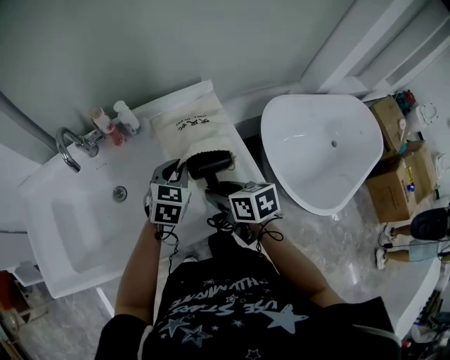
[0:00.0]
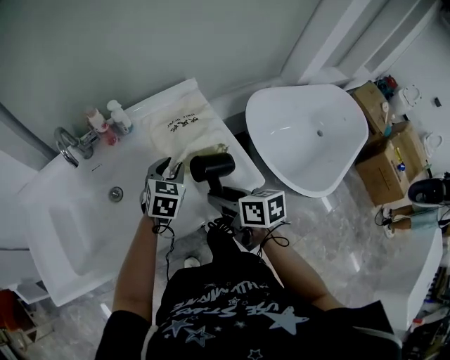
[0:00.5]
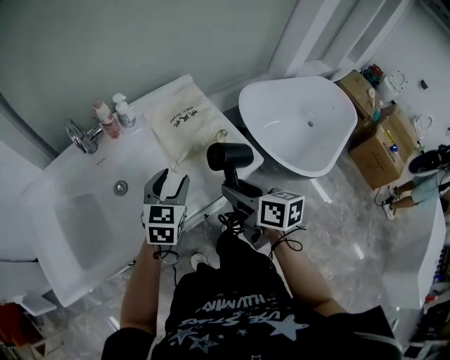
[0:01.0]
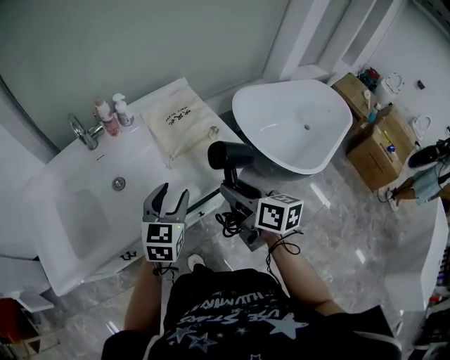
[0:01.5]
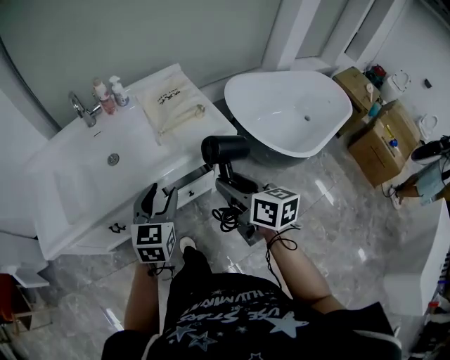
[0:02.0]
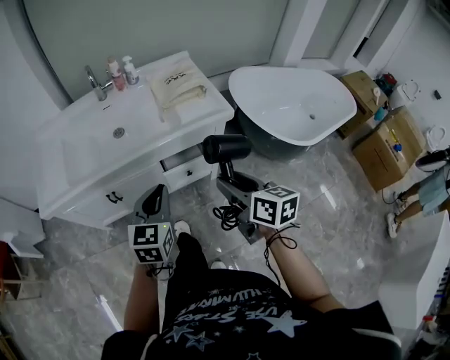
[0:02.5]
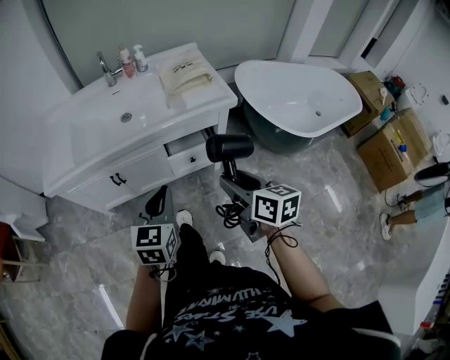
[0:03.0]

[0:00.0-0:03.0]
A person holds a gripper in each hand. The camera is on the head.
0:00.0 to 0:01.5: The right gripper shifts approximately 20 cm backward and upward, and swivels some 30 degrees. Meanwhile the left gripper heads backward, covering about 25 cm, and opens its fingers.
0:01.5 to 0:03.0: Both grippers travel together backward, about 30 cm. The left gripper closes.

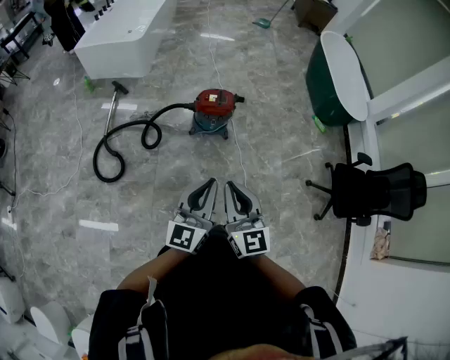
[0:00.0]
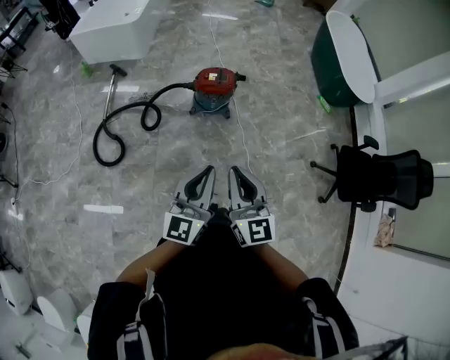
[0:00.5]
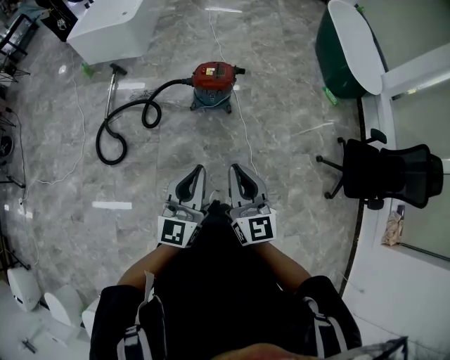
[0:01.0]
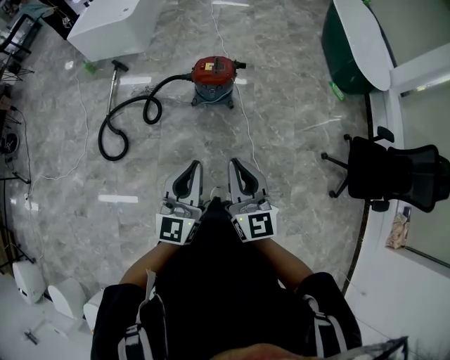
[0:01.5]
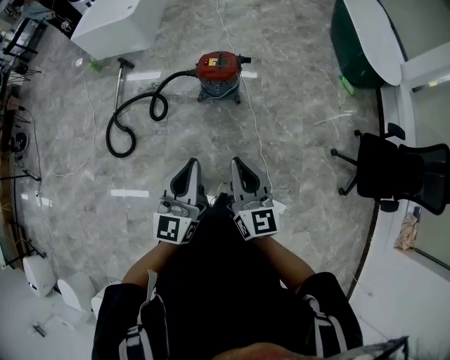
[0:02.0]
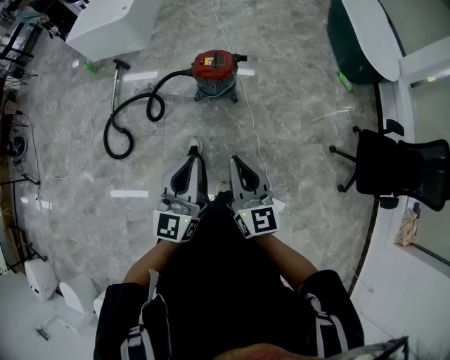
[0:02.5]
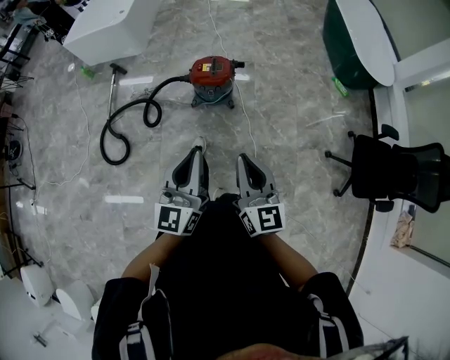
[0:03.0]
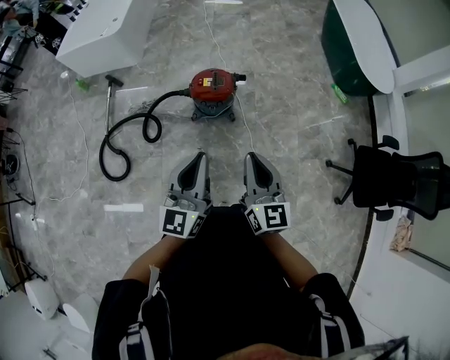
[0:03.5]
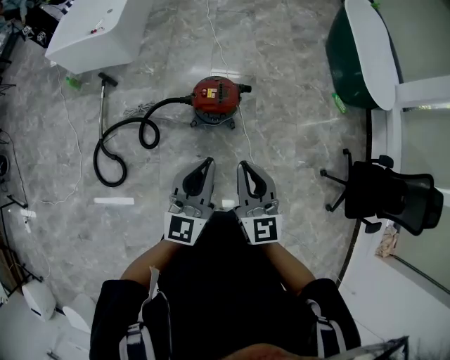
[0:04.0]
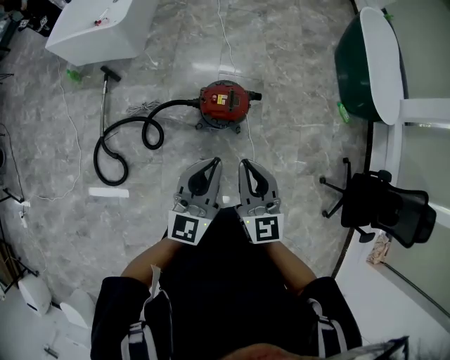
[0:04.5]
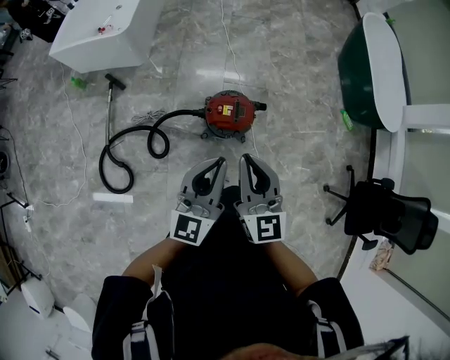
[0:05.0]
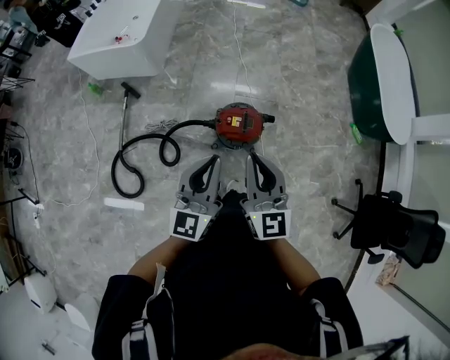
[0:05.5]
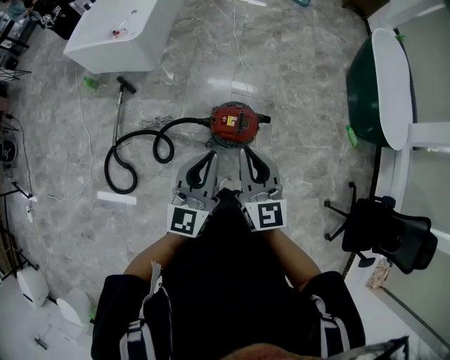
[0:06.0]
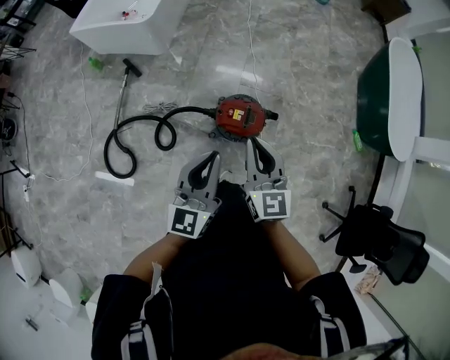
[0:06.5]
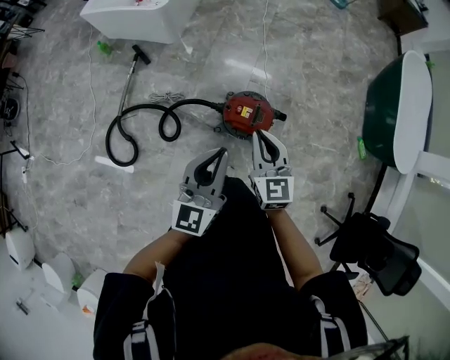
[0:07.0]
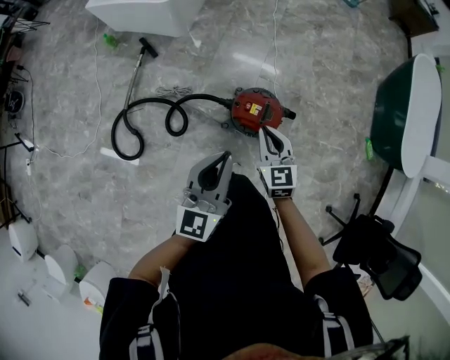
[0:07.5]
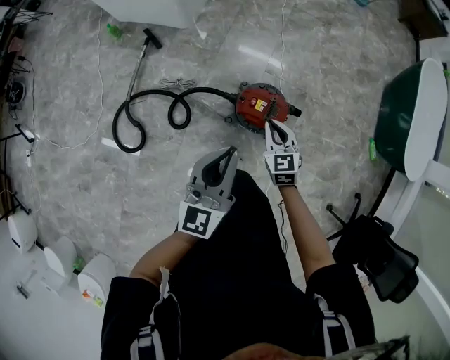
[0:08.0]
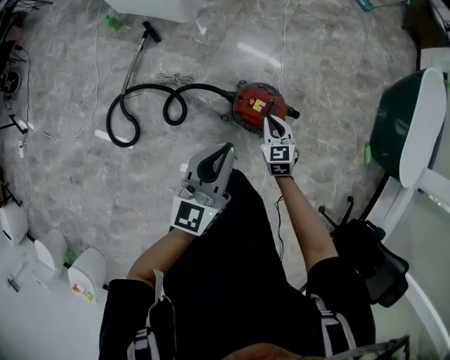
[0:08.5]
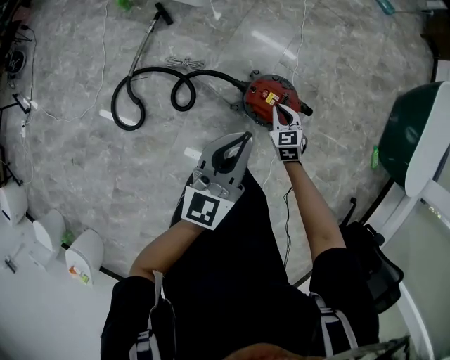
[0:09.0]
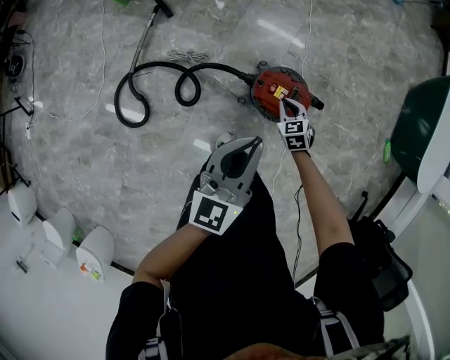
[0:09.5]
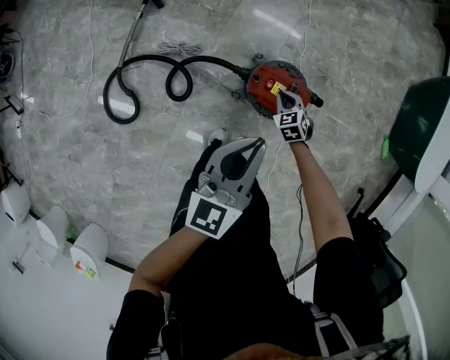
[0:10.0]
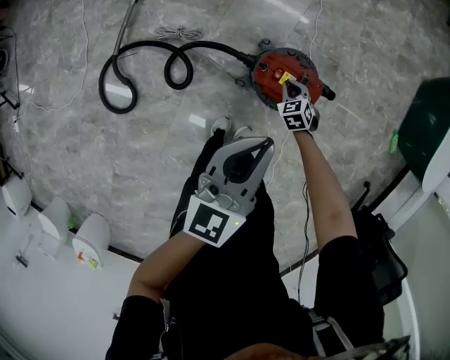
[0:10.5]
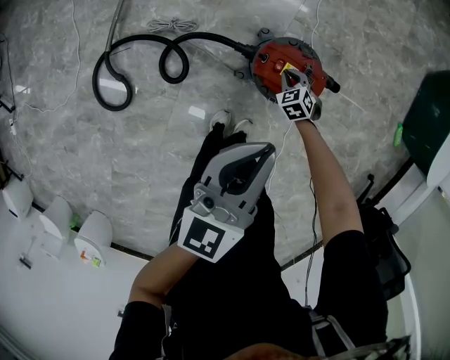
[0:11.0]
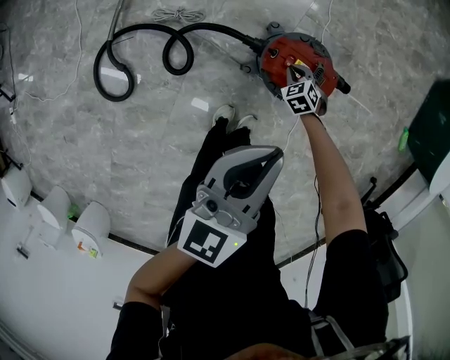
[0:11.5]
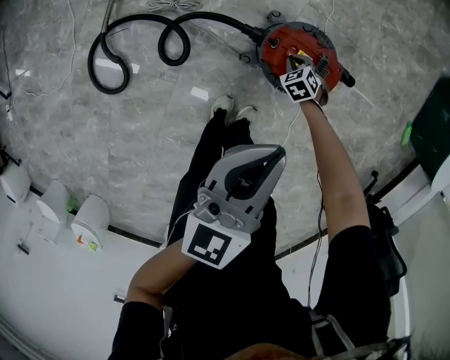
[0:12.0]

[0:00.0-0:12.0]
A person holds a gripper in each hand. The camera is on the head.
0:00.0 to 0:02.0: The left gripper heads to the right, covering about 10 cm, while the right gripper is displaced to the right by approximately 15 cm.
0:02.0 to 0:04.0: Both grippers travel together forward, roughly 25 cm.
0:04.0 to 0:06.0: The right gripper is displaced forward by some 20 cm; the left gripper goes approximately 15 cm forward and to the left.
0:06.0 to 0:08.0: The right gripper heads downward and forward, covering about 25 cm, and swivels roughly 30 degrees, while the left gripper shifts by about 5 cm.
0:08.0 to 0:10.0: The right gripper is displaced downward by some 25 cm, and turns by about 20 degrees. Meanwhile the left gripper shifts some 15 cm downward and forward.
0:10.0 to 0:12.0: The left gripper moves downward, some 10 cm, while the right gripper is displaced downward by some 20 cm.

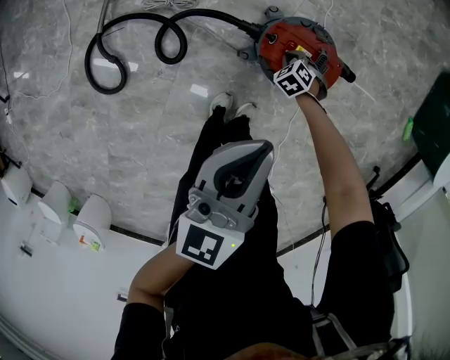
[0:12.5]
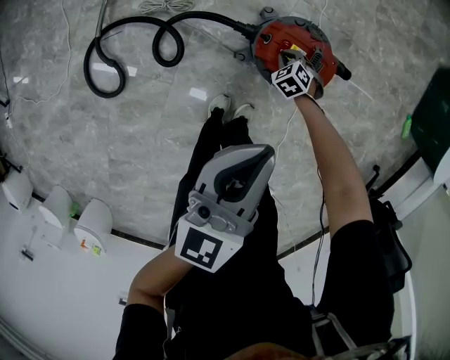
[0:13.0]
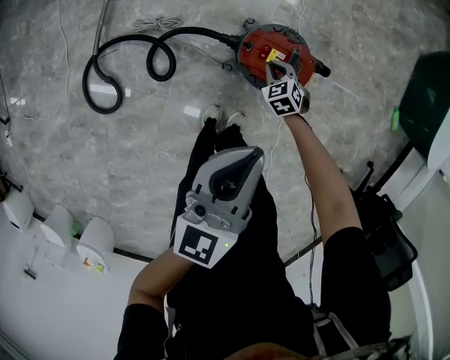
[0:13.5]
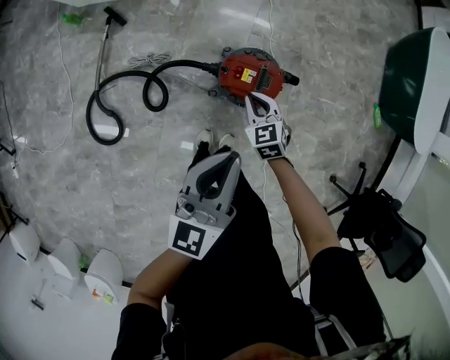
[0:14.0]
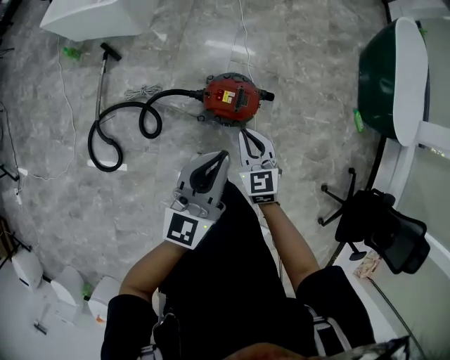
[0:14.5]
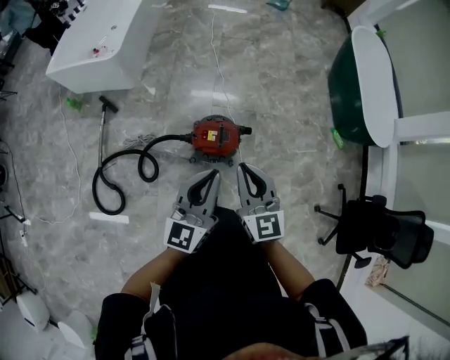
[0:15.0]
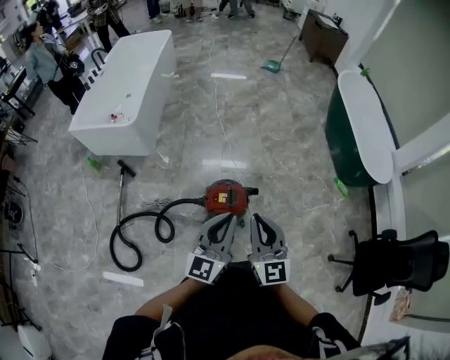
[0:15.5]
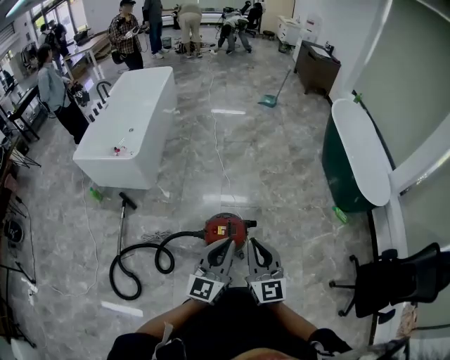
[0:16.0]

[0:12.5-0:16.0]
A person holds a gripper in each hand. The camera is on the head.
0:12.5 to 0:14.5: The left gripper is displaced upward by some 20 cm. Meanwhile the right gripper travels upward by some 50 cm, and tips its fingers upward by some 50 degrees.
0:14.5 to 0:16.0: The right gripper is displaced upward by about 25 cm, and turns by some 30 degrees. Meanwhile the left gripper goes roughly 10 cm upward and to the right.

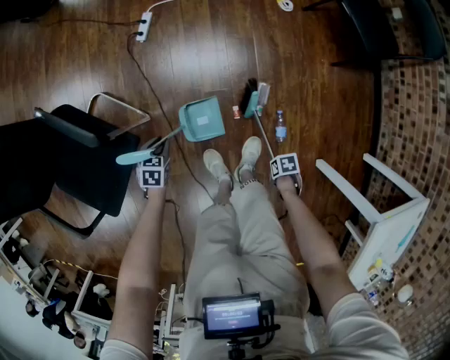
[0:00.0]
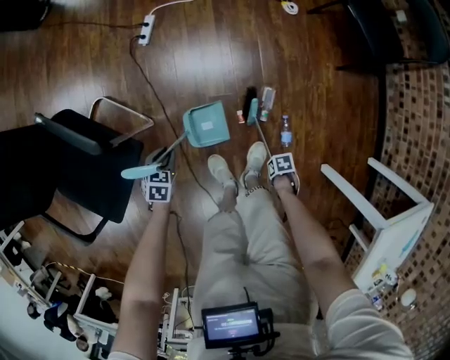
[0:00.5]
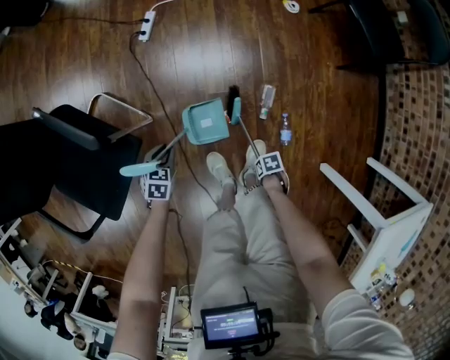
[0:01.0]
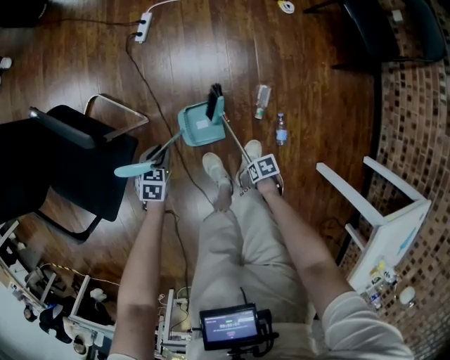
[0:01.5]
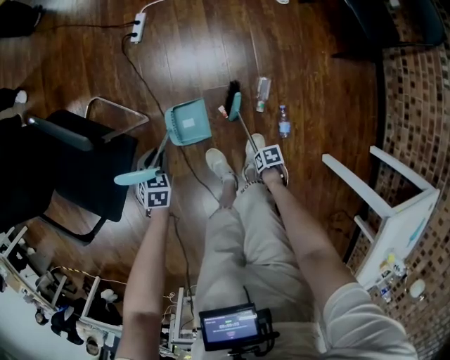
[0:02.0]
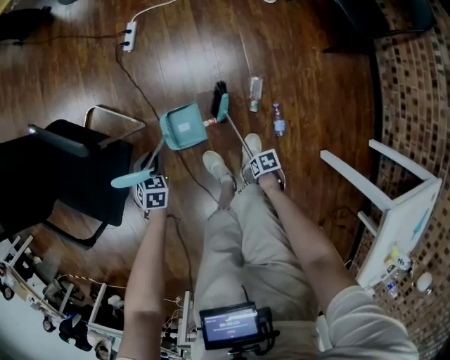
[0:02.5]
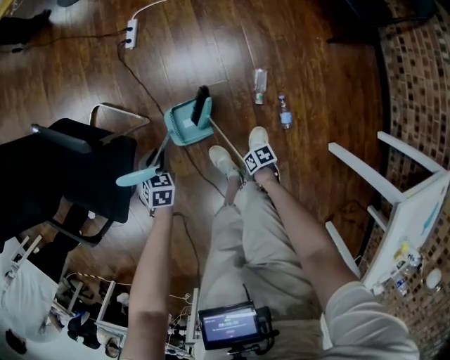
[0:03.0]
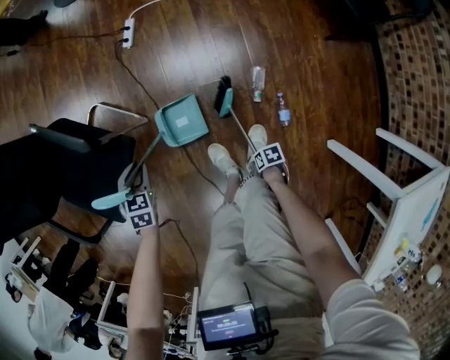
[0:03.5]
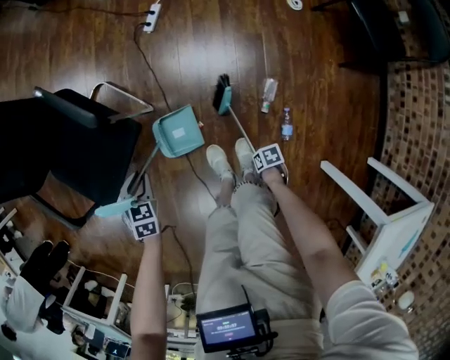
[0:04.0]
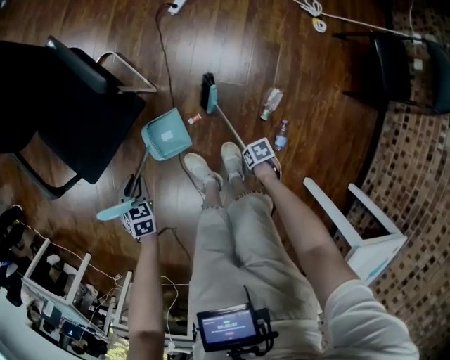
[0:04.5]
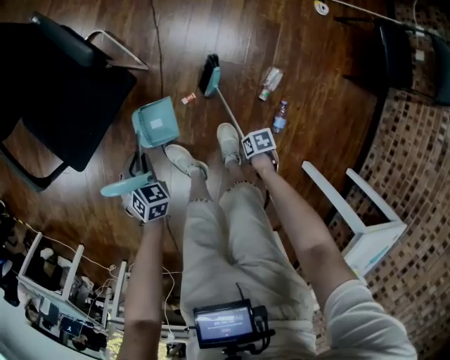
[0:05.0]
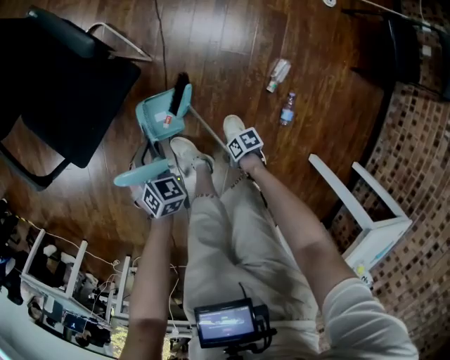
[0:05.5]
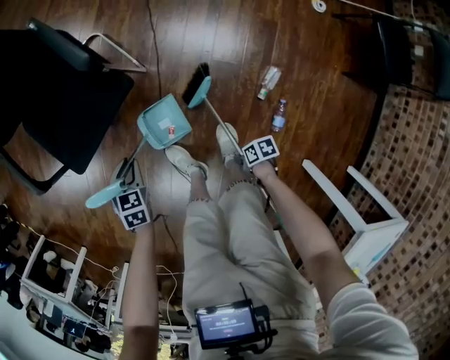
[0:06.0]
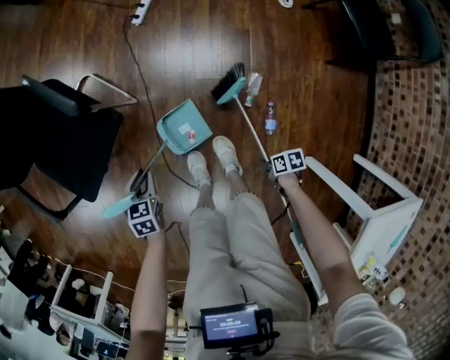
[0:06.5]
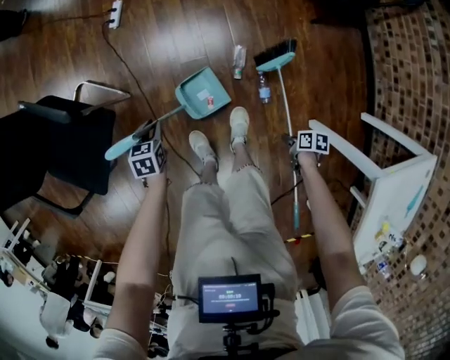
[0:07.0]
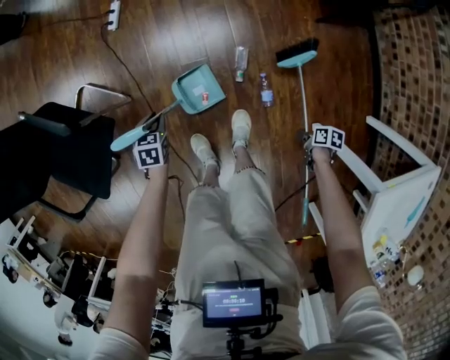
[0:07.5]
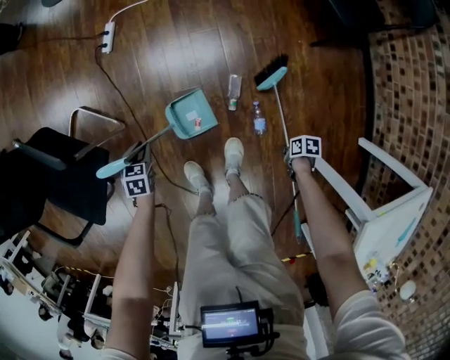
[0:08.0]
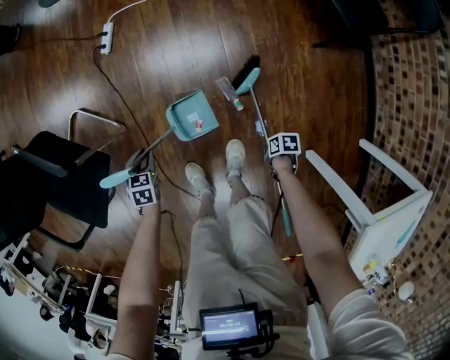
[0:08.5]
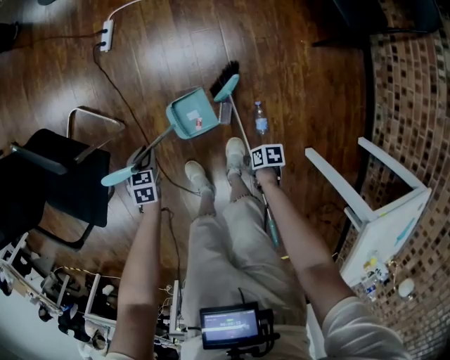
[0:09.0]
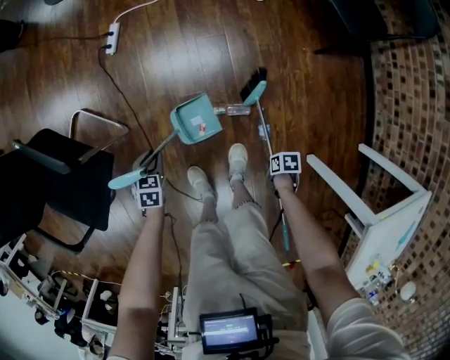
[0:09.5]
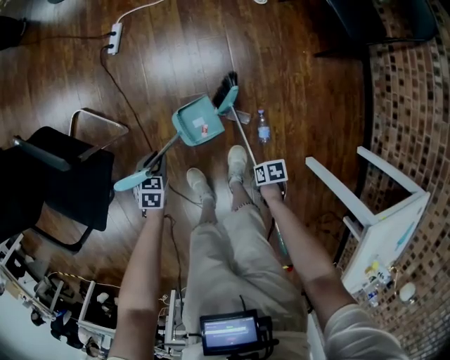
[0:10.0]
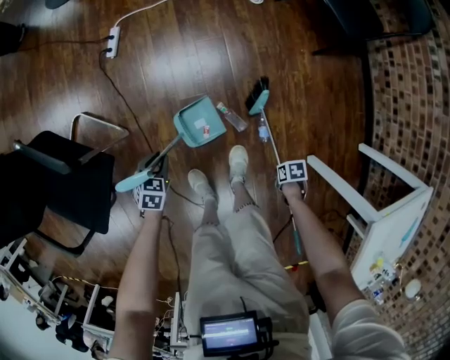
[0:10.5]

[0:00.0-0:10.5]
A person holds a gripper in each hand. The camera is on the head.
0:02.0 to 0:04.0: The left gripper ends up about 15 cm from where it was.
0:04.0 to 0:06.5: The left gripper changes place by roughly 5 cm.
0:06.5 to 0:08.5: The left gripper ends up about 25 cm from where it was.
